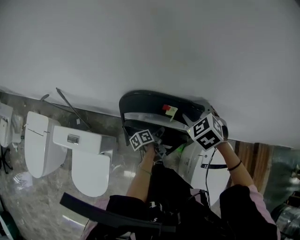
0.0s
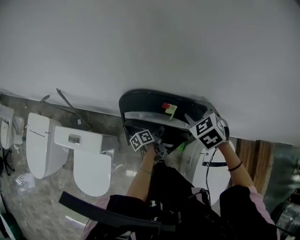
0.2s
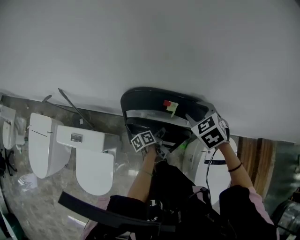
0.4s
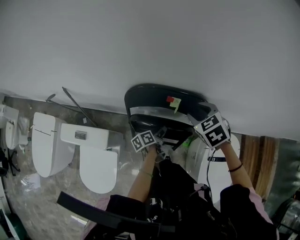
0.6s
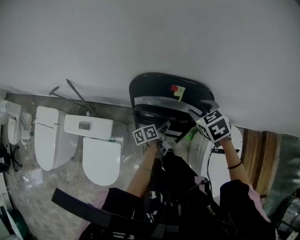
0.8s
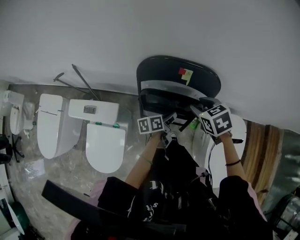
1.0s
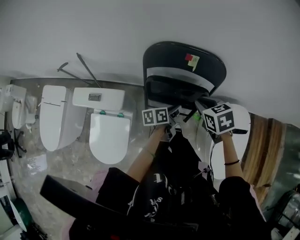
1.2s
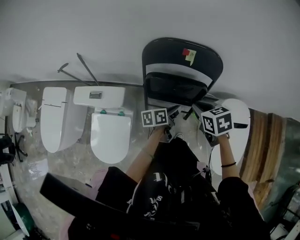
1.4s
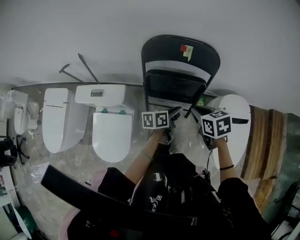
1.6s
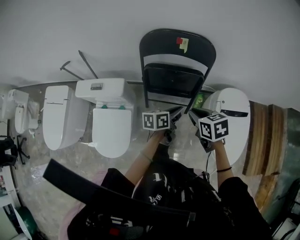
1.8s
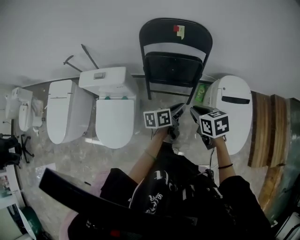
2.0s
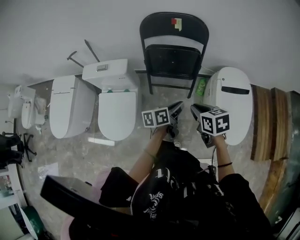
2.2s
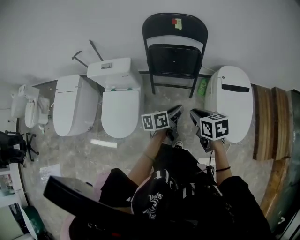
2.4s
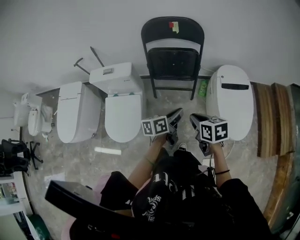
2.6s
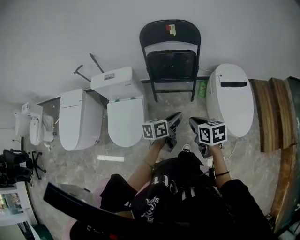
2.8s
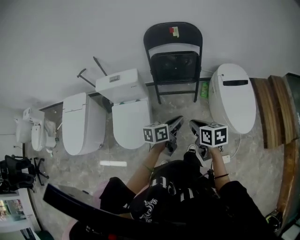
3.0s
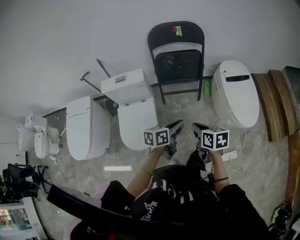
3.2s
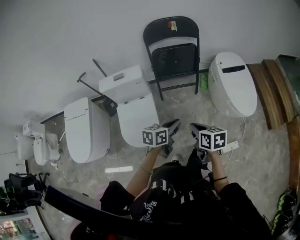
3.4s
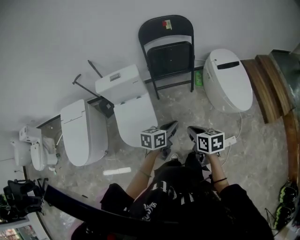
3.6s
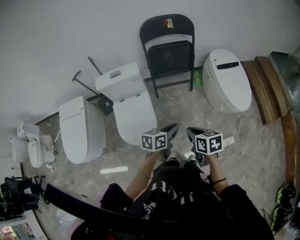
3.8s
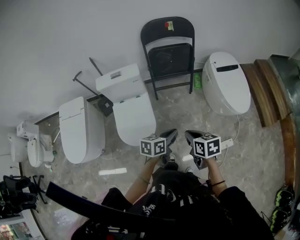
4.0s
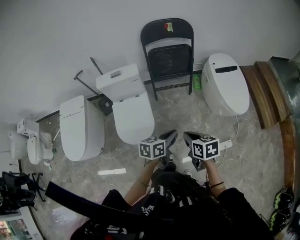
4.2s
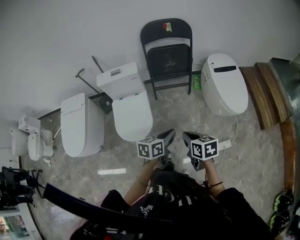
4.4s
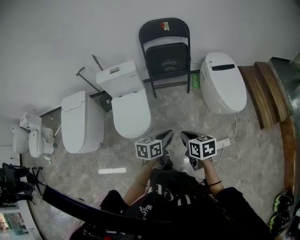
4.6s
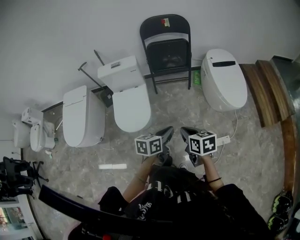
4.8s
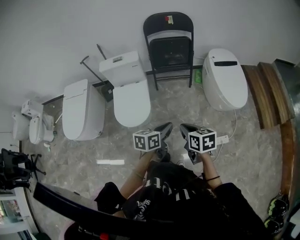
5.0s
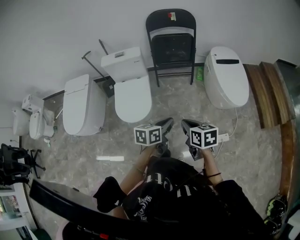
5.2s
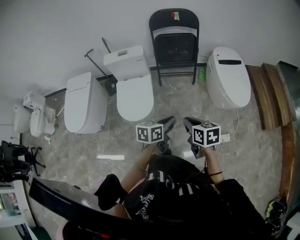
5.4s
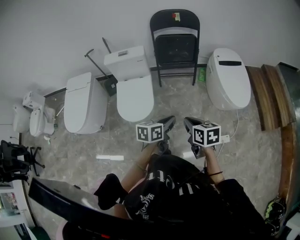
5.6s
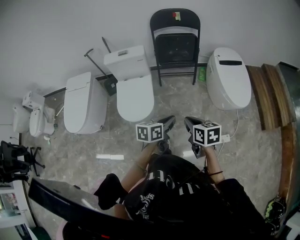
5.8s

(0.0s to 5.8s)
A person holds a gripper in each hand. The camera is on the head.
0.0s - 1.4s: The left gripper shifts some 20 cm backward and upward, and turns by roughly 30 degrees. The right gripper heads backward, covering about 25 cm, swivels roughly 40 degrees, and closes its fingers.
1.4s - 2.8s: Both grippers travel together backward, roughly 40 cm. The right gripper turns by some 20 degrees.
2.8s - 4.4s: The grippers both shift backward and to the left by approximately 30 cm.
4.4s - 5.8s: The right gripper changes place by some 5 cm. Meanwhile the left gripper is displaced backward by some 5 cm.

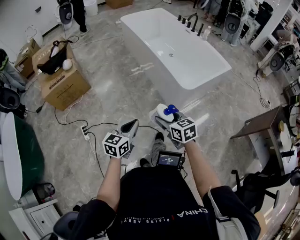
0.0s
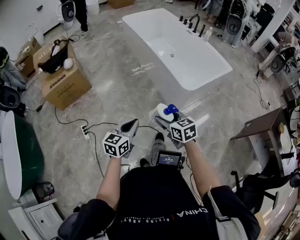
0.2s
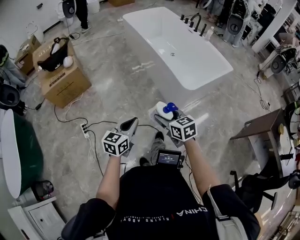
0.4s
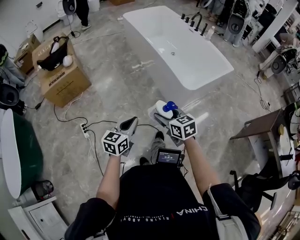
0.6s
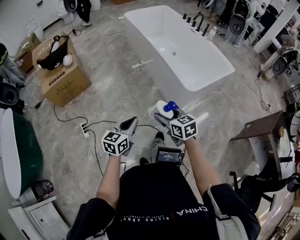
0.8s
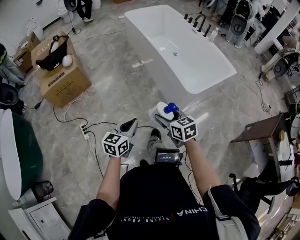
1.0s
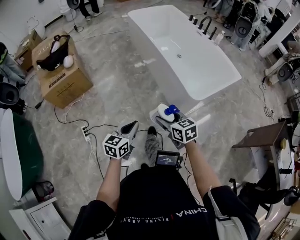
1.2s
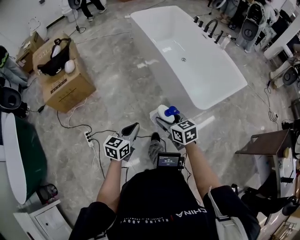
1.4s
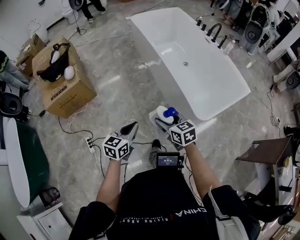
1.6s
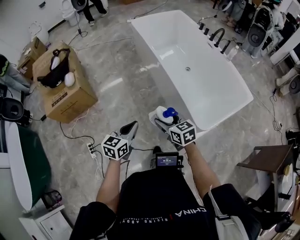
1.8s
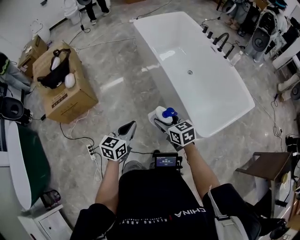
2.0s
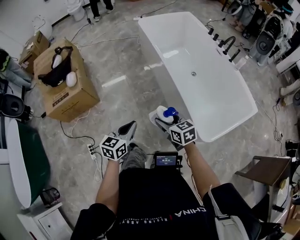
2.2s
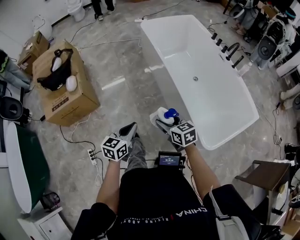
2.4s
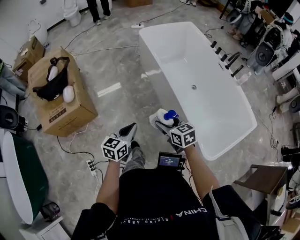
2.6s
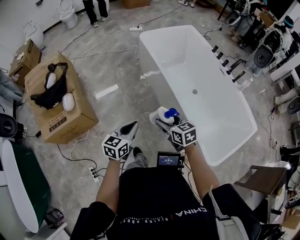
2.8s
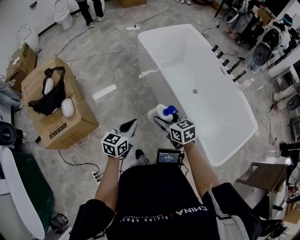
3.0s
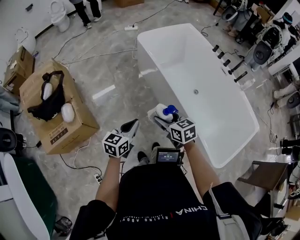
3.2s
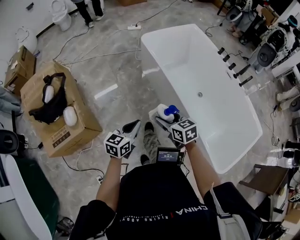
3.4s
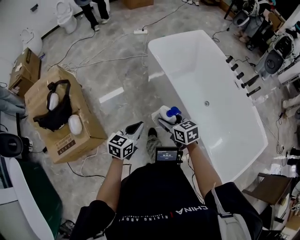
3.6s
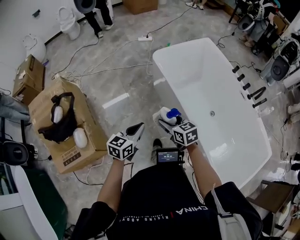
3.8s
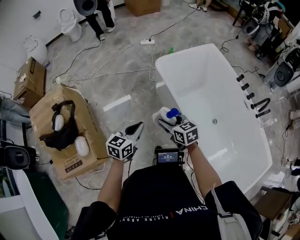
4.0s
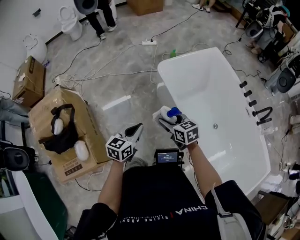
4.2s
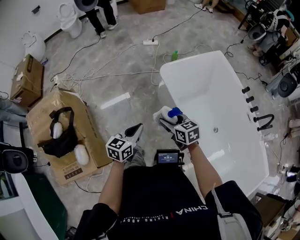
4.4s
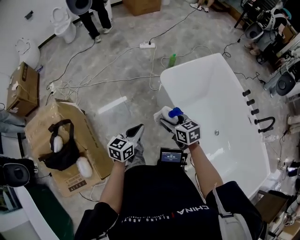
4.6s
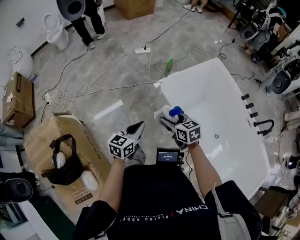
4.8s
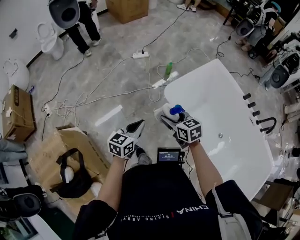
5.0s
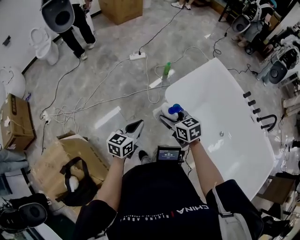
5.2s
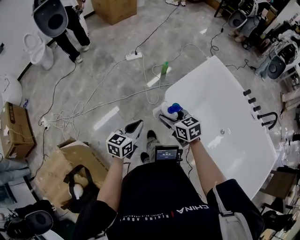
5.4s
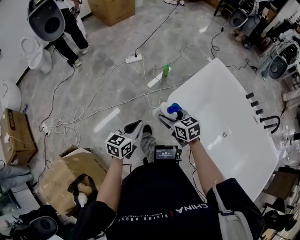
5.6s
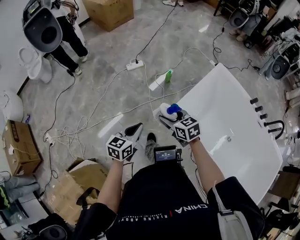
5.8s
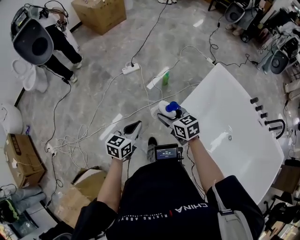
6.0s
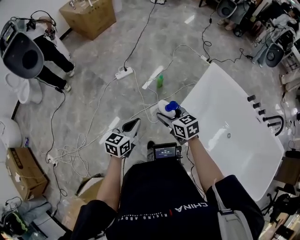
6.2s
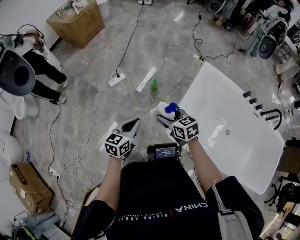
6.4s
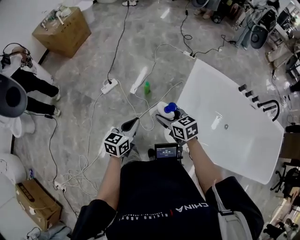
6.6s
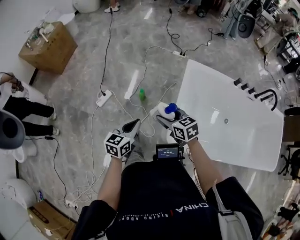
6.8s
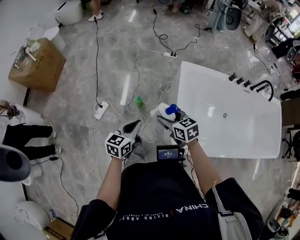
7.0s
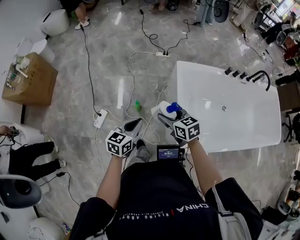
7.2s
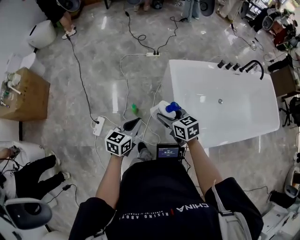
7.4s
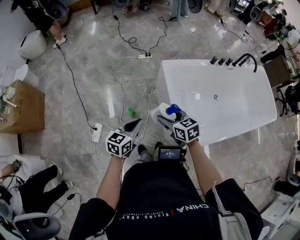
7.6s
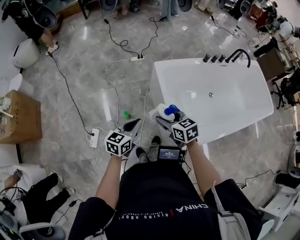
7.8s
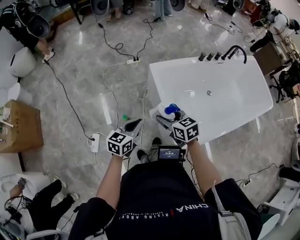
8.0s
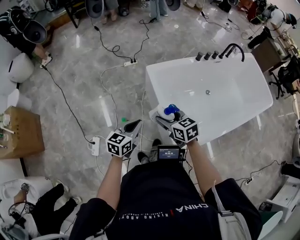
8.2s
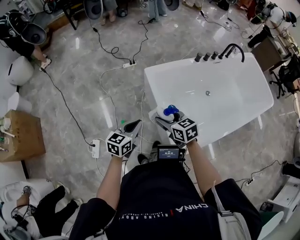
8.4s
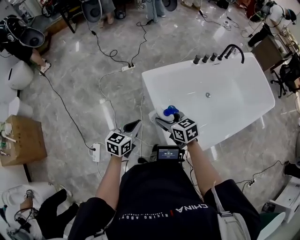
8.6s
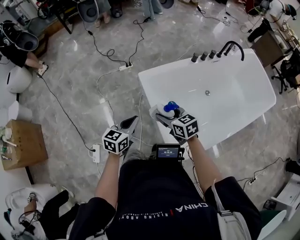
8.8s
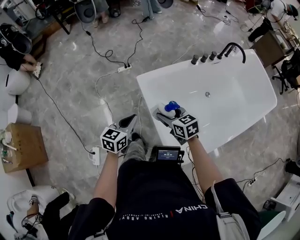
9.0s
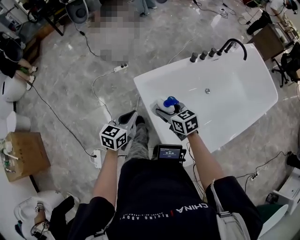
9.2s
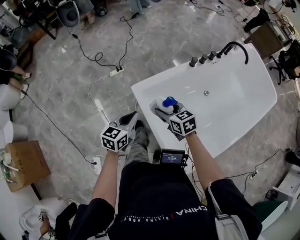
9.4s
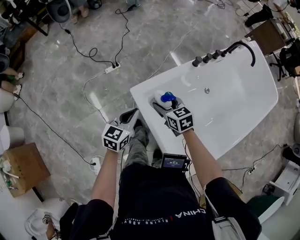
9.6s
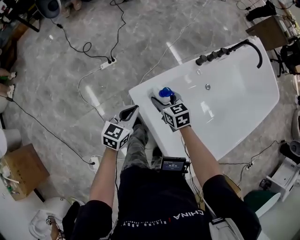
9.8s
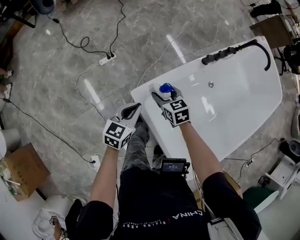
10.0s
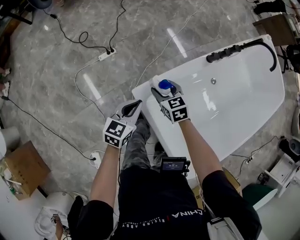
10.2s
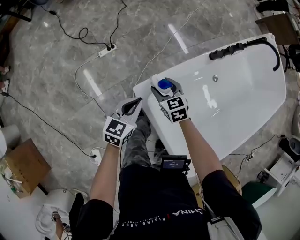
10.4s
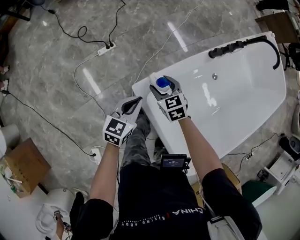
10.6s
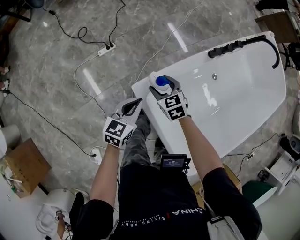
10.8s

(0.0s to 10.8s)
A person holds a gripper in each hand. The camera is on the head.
0.0s - 1.6s: The grippers both shift forward by roughly 30 cm.
1.6s - 3.0s: The pair of grippers is taken forward, roughly 40 cm.
3.0s - 4.6s: The two grippers travel together, forward, roughly 60 cm.
4.6s - 6.2s: Both grippers are carried forward, roughly 50 cm. The right gripper turns by approximately 20 degrees; the left gripper changes its angle by approximately 30 degrees.
6.2s - 7.8s: The right gripper shifts by approximately 25 cm, and changes its angle by some 50 degrees, while the left gripper moves some 35 cm, and turns by some 50 degrees.
7.8s - 9.2s: The right gripper goes about 25 cm forward and to the right. Meanwhile the left gripper shifts approximately 25 cm forward.
9.2s - 10.8s: Both grippers move forward and downward, roughly 30 cm.

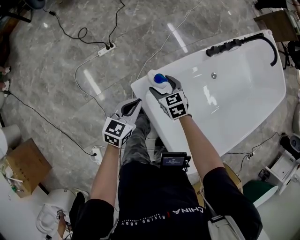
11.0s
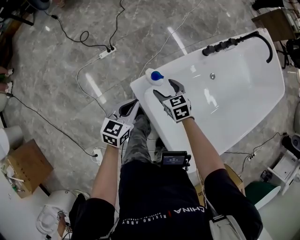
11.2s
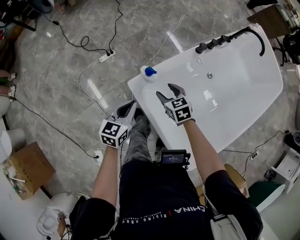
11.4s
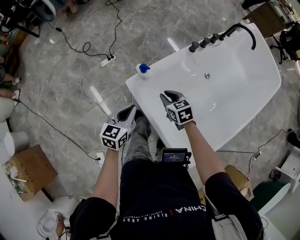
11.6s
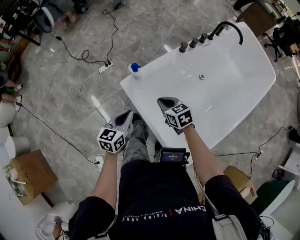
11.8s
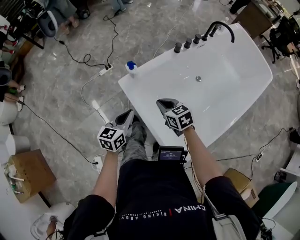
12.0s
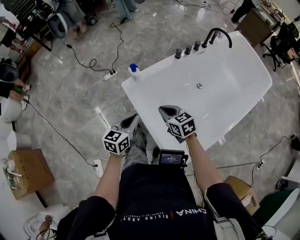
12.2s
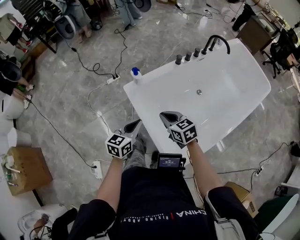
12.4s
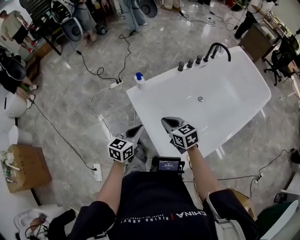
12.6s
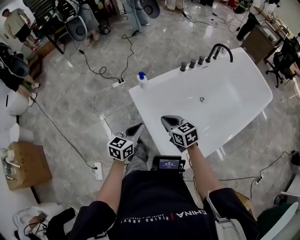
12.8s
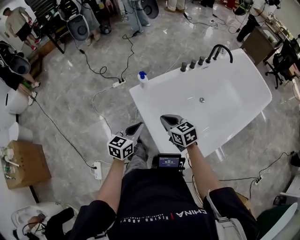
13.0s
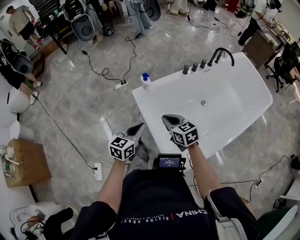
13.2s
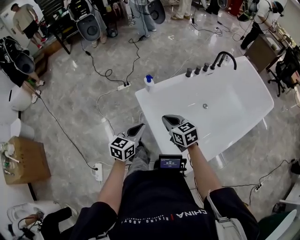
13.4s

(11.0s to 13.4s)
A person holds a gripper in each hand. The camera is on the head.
11.0s - 12.2s: Both grippers move backward, upward and to the right, about 35 cm. The right gripper closes its fingers.
12.2s - 13.4s: The left gripper shifts roughly 10 cm upward and backward. Meanwhile the right gripper goes about 5 cm upward.

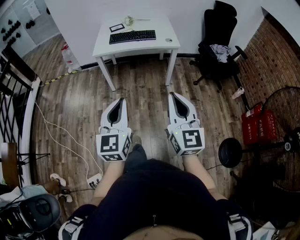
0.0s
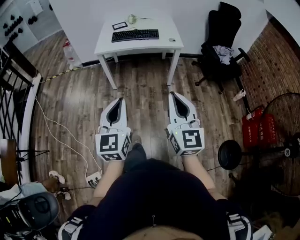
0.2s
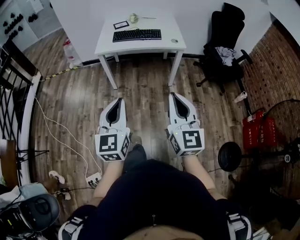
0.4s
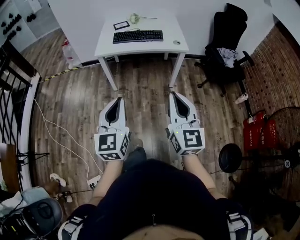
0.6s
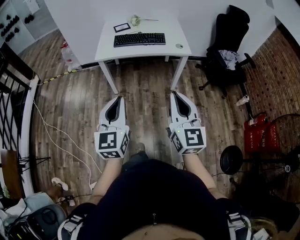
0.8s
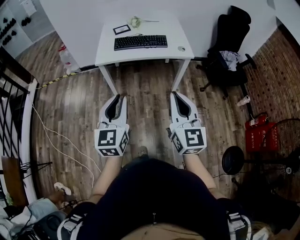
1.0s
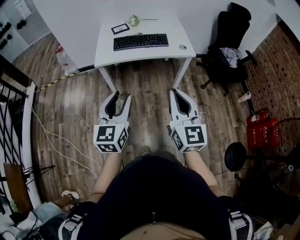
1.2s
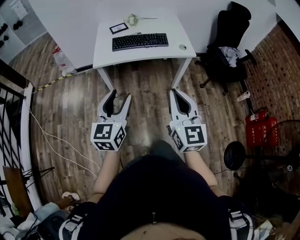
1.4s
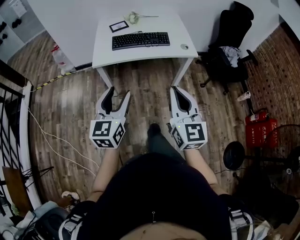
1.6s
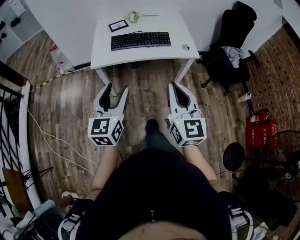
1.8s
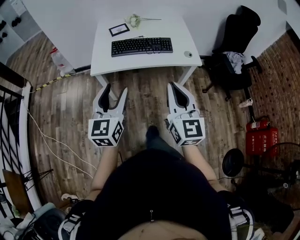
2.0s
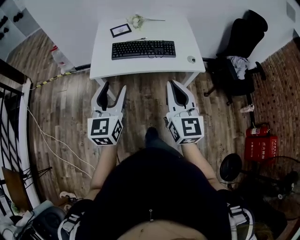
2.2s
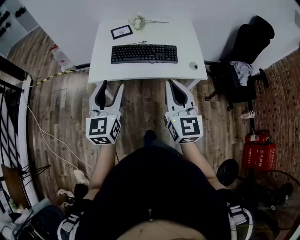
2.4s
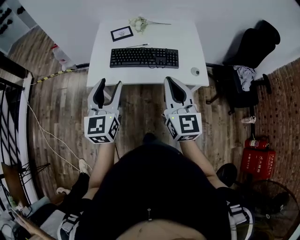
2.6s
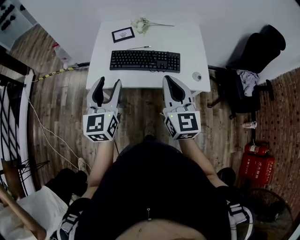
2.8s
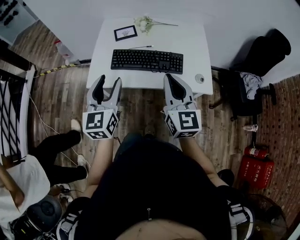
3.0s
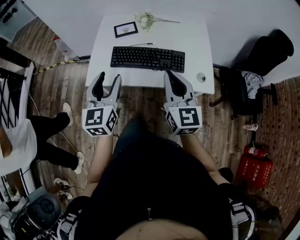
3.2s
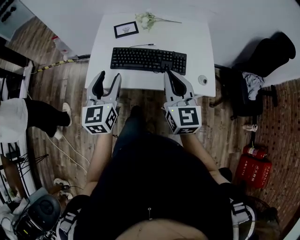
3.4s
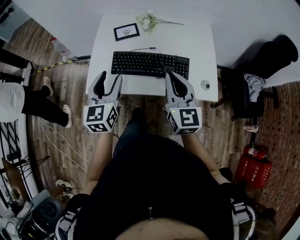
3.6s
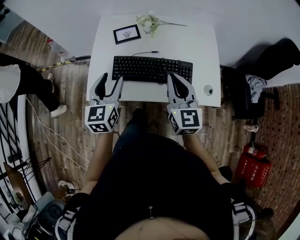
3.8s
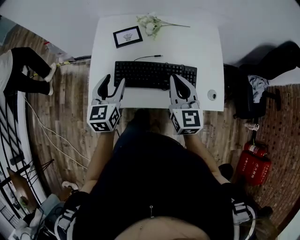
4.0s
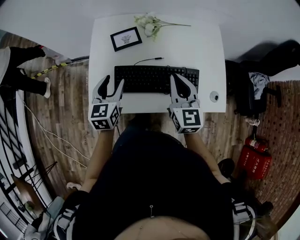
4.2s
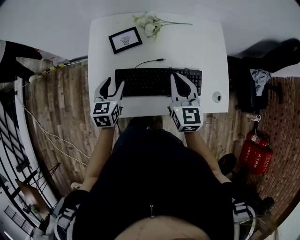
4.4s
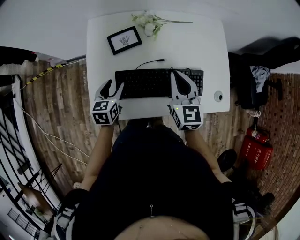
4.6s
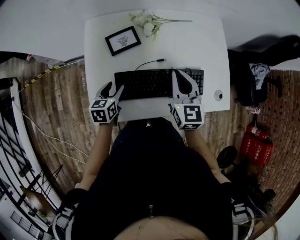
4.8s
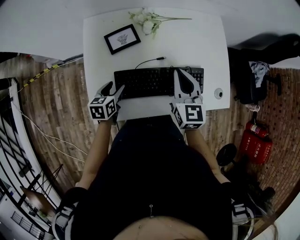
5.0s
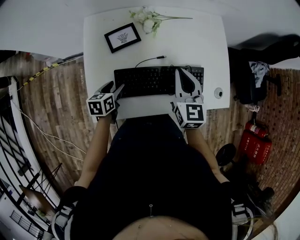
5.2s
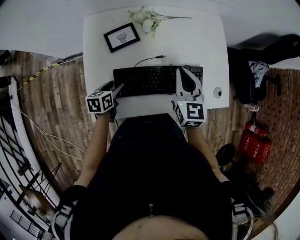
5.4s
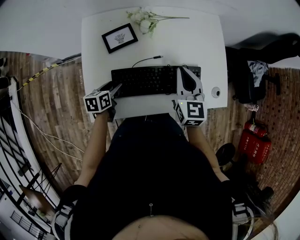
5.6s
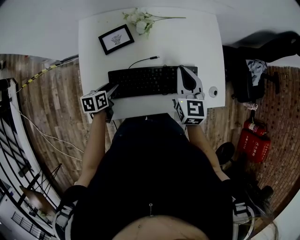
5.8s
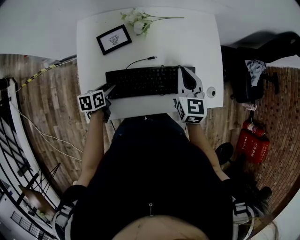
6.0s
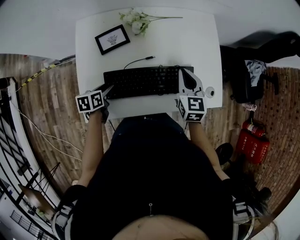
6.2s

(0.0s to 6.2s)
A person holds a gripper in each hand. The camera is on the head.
0.0s - 1.6s: The grippers both shift forward by about 30 cm. The left gripper opens its fingers.
1.6s - 3.2s: The grippers both shift forward by approximately 35 cm.
3.2s - 4.6s: The two grippers go some 30 cm forward and downward. The left gripper changes its angle by roughly 30 degrees.
4.6s - 6.2s: The right gripper travels to the right by some 10 cm. Meanwhile the left gripper moves downward, some 5 cm, and turns by some 30 degrees.
